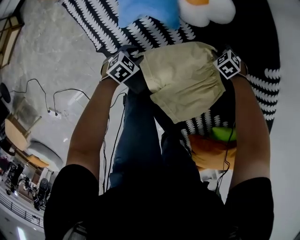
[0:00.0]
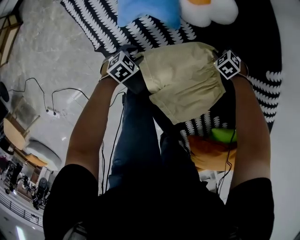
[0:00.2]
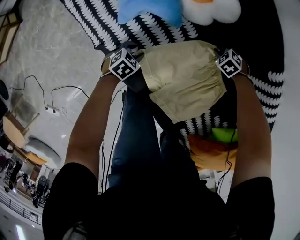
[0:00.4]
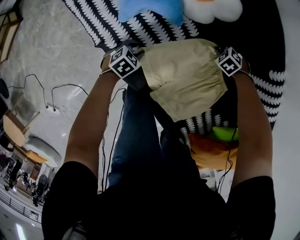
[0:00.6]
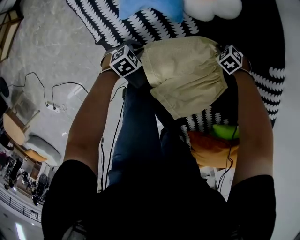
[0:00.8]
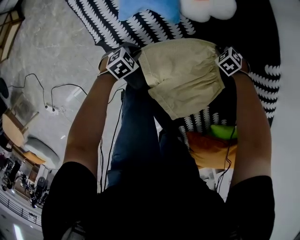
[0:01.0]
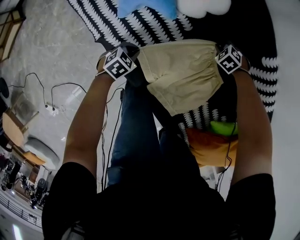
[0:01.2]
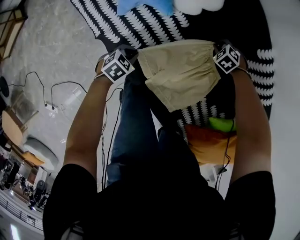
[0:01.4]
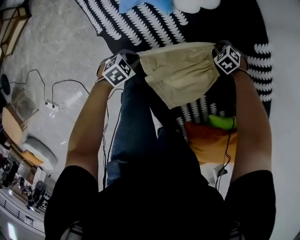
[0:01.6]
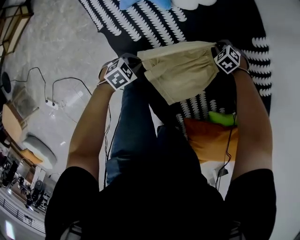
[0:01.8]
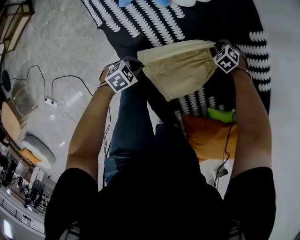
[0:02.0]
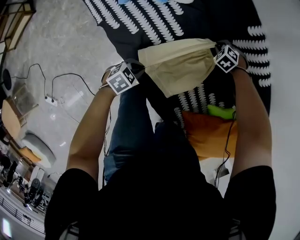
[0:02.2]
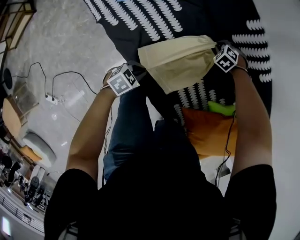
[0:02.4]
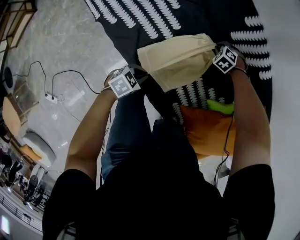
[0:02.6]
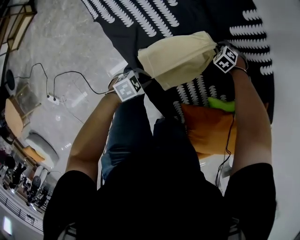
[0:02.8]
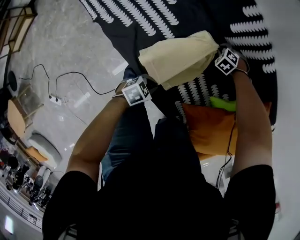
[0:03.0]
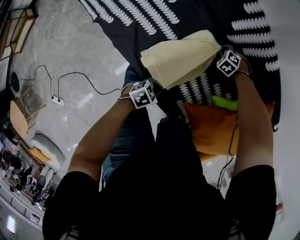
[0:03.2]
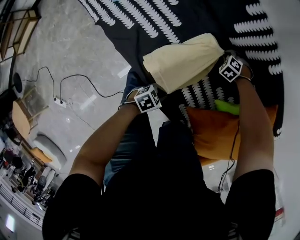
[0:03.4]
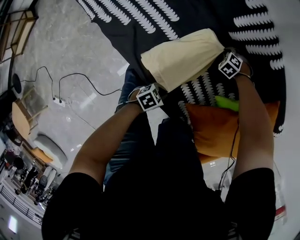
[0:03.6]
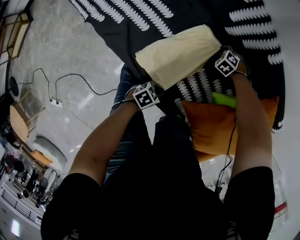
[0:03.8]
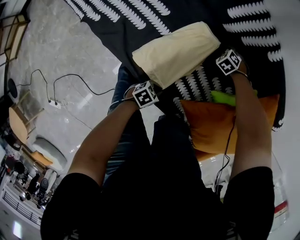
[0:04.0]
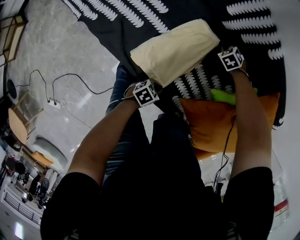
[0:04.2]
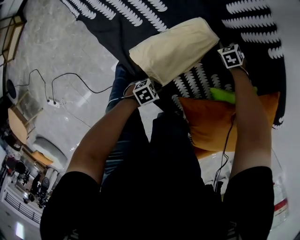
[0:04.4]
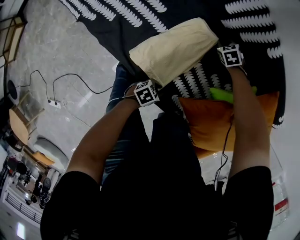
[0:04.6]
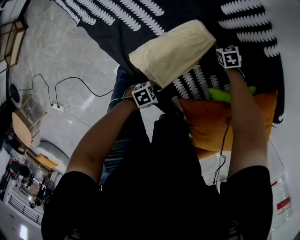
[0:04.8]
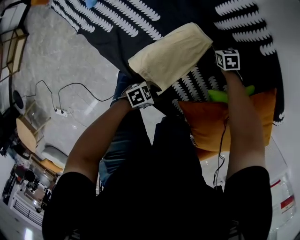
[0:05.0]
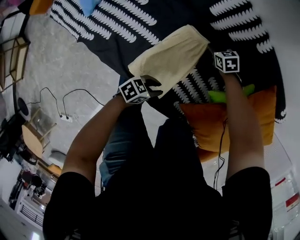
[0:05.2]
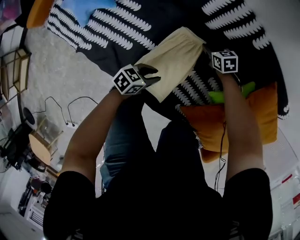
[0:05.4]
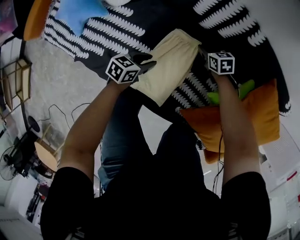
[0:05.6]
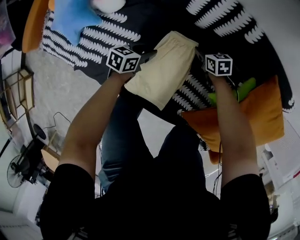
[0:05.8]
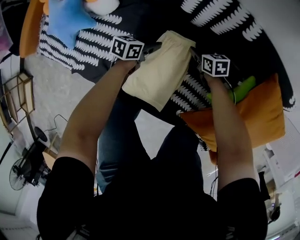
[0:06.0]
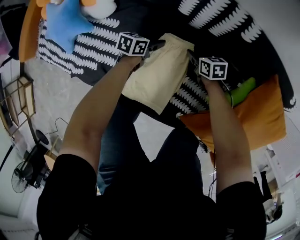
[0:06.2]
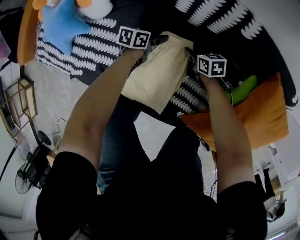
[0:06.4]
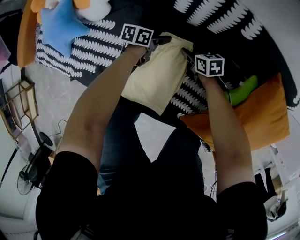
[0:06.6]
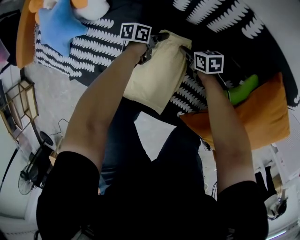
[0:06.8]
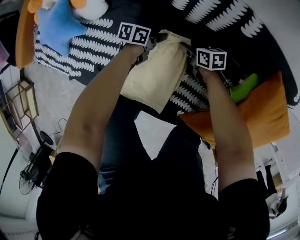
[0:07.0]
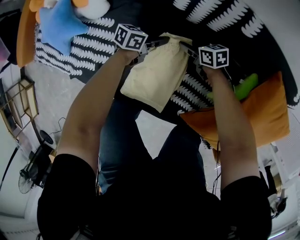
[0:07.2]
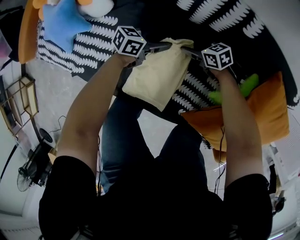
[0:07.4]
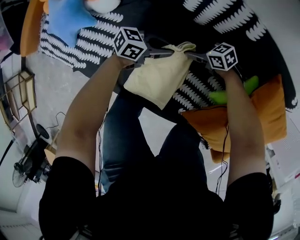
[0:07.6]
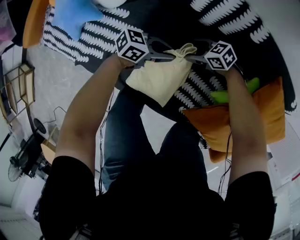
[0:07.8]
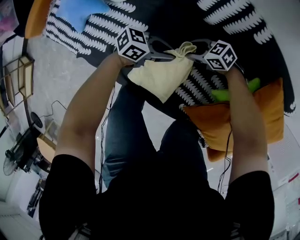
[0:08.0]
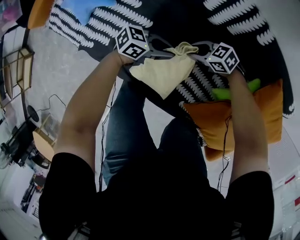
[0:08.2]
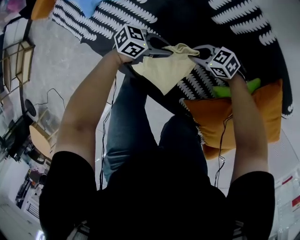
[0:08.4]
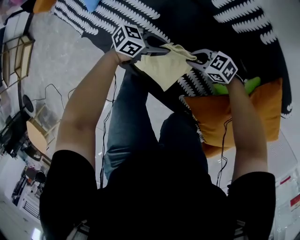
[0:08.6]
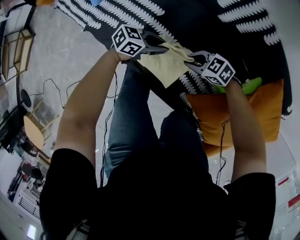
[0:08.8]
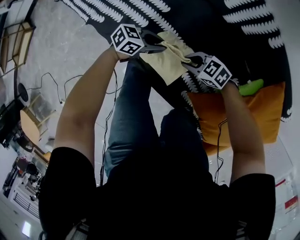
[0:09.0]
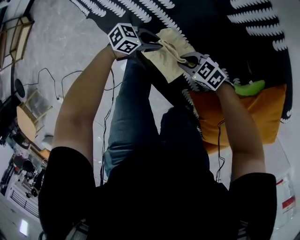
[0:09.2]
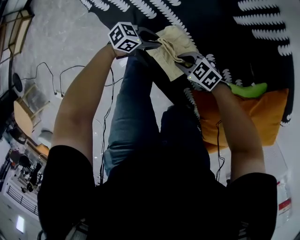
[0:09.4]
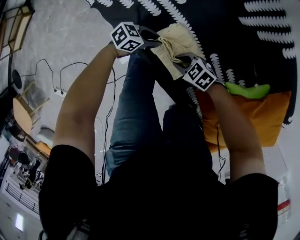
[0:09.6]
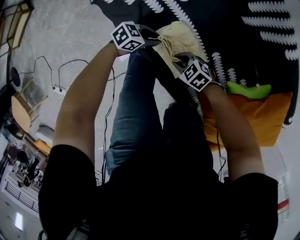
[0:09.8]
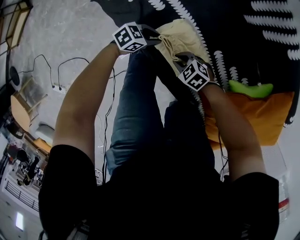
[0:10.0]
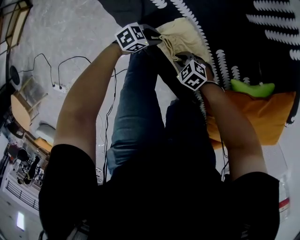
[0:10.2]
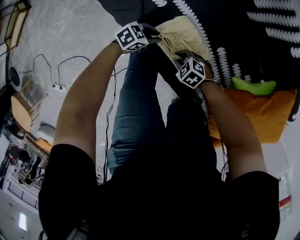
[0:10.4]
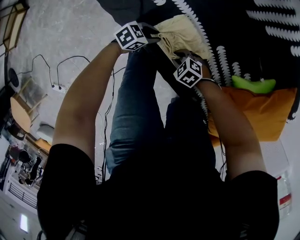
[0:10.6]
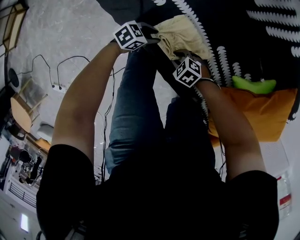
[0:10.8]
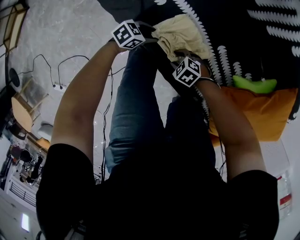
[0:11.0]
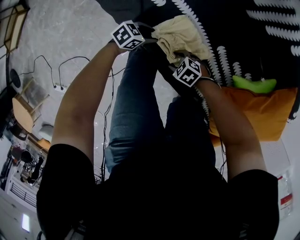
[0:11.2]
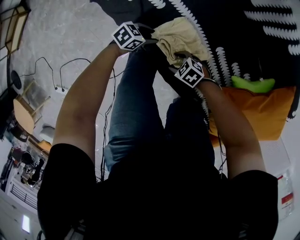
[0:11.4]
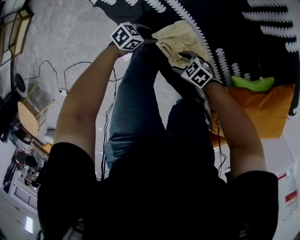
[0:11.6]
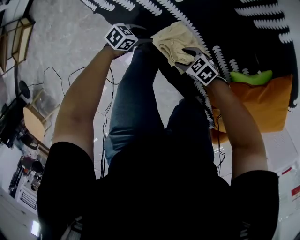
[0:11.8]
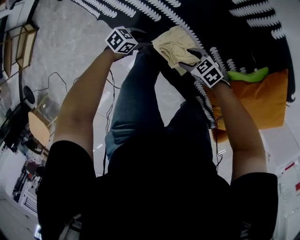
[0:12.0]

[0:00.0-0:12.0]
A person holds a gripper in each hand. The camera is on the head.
0:00.0 to 0:01.6: Both grippers travel together upward, roughly 5 cm. The left gripper closes up.
0:01.6 to 0:03.0: The right gripper shifts by approximately 15 cm; the left gripper shifts by approximately 30 cm.
0:03.0 to 0:04.4: The left gripper is displaced downward by about 10 cm; the right gripper shifts by approximately 5 cm, and turns by about 30 degrees.
0:04.4 to 0:06.0: The left gripper reaches some 10 cm upward, then returns, and opens. Meanwhile the right gripper rotates around the line of its fingers by about 60 degrees, clockwise from behind, and opens its fingers.
0:06.0 to 0:07.6: The left gripper moves upward, about 10 cm, swivels about 30 degrees, and closes its fingers; the right gripper shifts by approximately 5 cm, rotates some 30 degrees, and opens.
0:07.6 to 0:09.0: The right gripper ends up about 25 cm from where it was, turns by about 40 degrees, and closes. The left gripper shifts by about 20 cm.
0:09.0 to 0:10.4: The left gripper changes place by roughly 15 cm, while the right gripper changes place by about 15 cm, and rotates roughly 20 degrees.
0:10.4 to 0:12.0: Both grippers move upward, some 10 cm. The right gripper rotates approximately 20 degrees, and opens up; the left gripper opens.

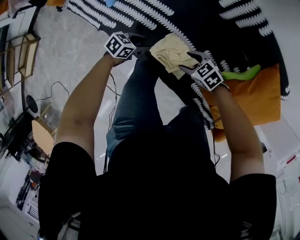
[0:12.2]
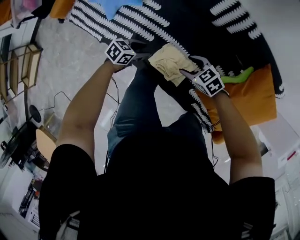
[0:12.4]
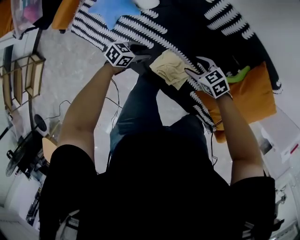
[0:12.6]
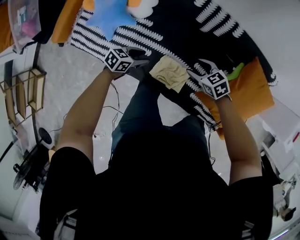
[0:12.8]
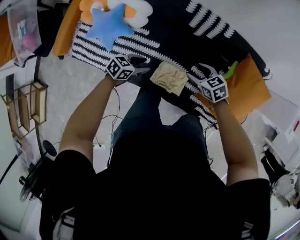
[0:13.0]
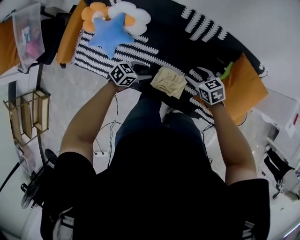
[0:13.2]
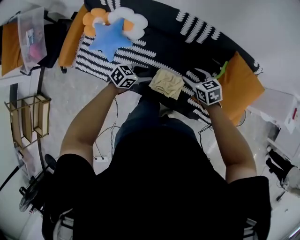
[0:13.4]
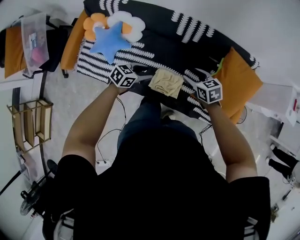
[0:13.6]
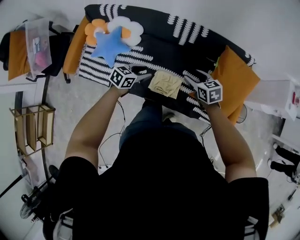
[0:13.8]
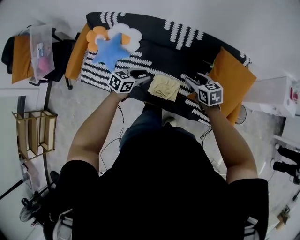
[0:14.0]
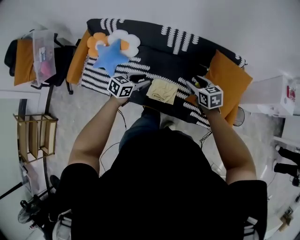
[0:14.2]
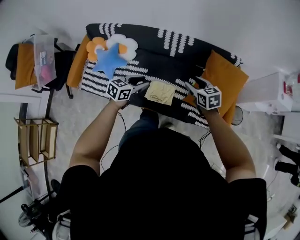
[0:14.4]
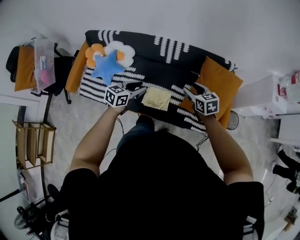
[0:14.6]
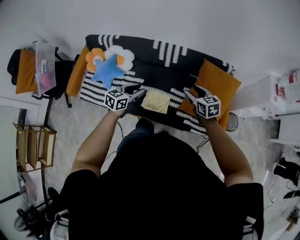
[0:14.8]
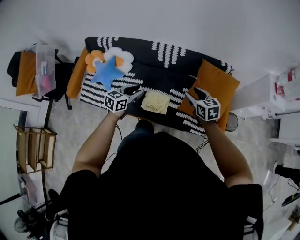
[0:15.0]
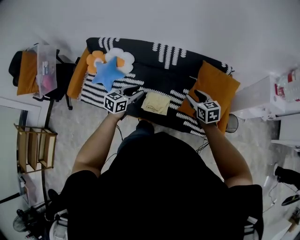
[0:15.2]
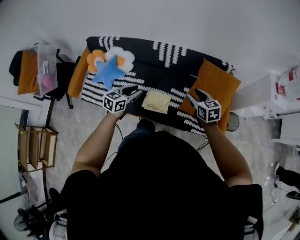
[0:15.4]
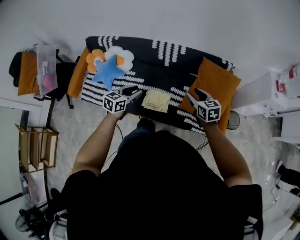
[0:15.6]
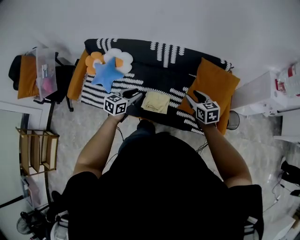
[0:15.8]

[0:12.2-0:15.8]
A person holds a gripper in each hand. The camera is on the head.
0:12.2 to 0:14.0: Both grippers travel together upward, roughly 35 cm. The left gripper swivels roughly 20 degrees. The right gripper turns by roughly 60 degrees.
0:14.0 to 0:15.8: The right gripper heads to the right, upward and backward, covering approximately 15 cm, while the left gripper heads upward, backward and to the right, covering about 10 cm.

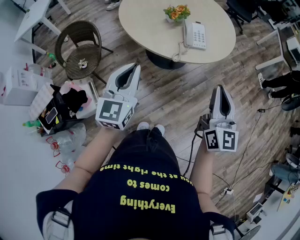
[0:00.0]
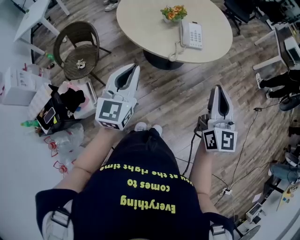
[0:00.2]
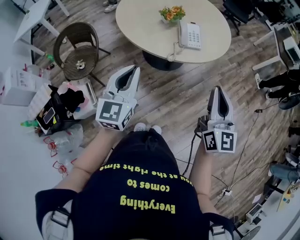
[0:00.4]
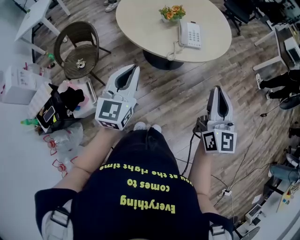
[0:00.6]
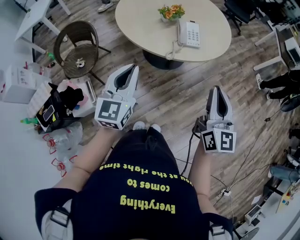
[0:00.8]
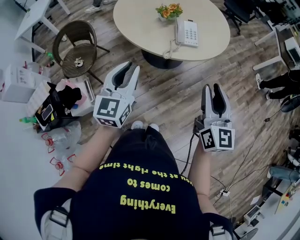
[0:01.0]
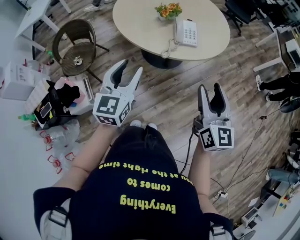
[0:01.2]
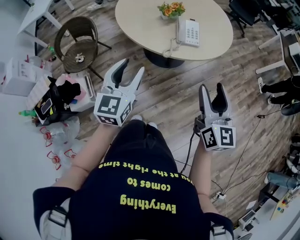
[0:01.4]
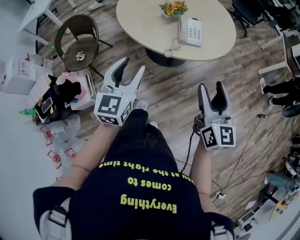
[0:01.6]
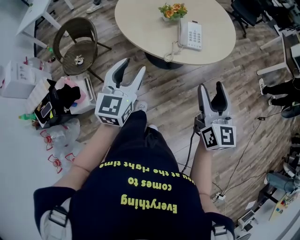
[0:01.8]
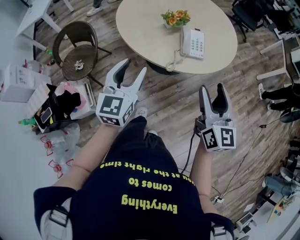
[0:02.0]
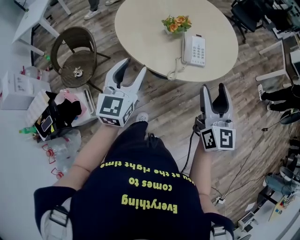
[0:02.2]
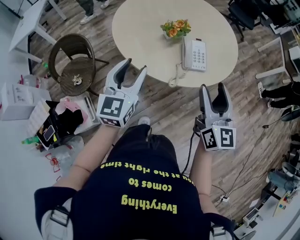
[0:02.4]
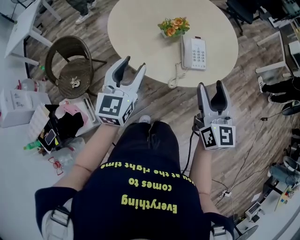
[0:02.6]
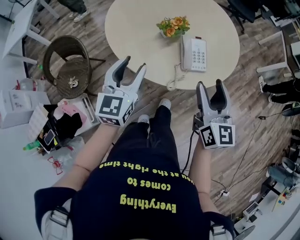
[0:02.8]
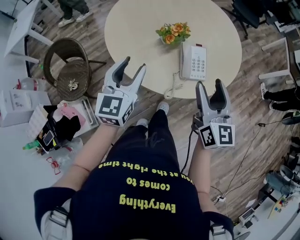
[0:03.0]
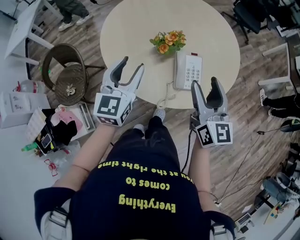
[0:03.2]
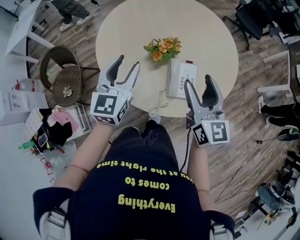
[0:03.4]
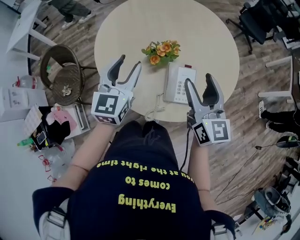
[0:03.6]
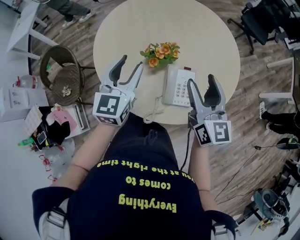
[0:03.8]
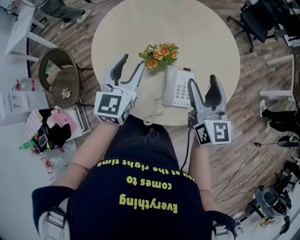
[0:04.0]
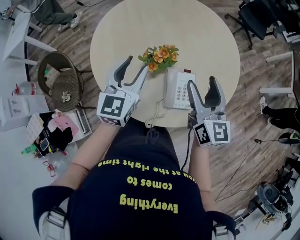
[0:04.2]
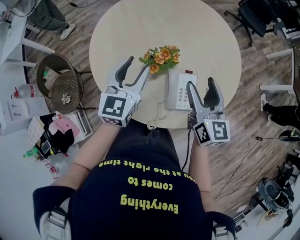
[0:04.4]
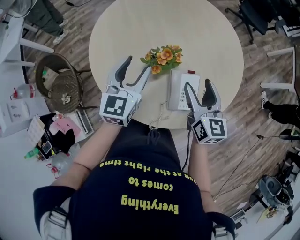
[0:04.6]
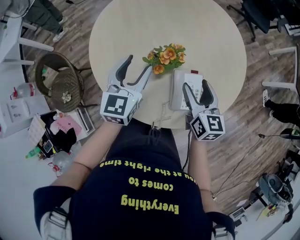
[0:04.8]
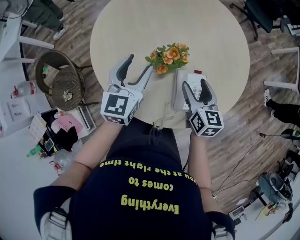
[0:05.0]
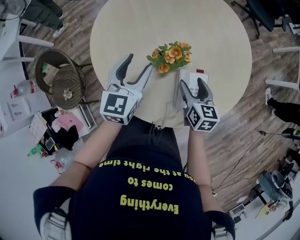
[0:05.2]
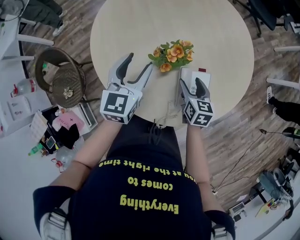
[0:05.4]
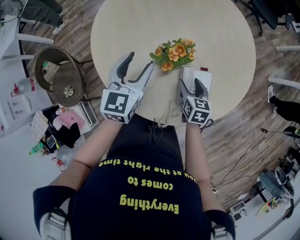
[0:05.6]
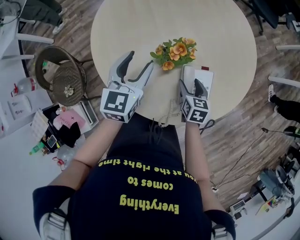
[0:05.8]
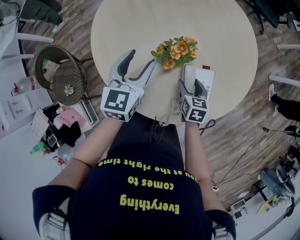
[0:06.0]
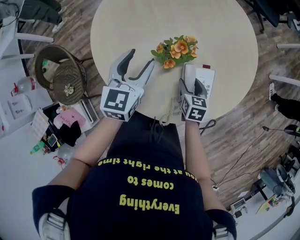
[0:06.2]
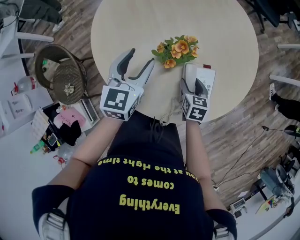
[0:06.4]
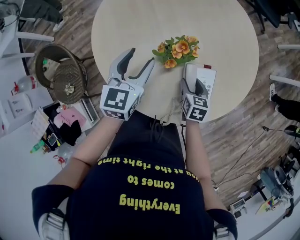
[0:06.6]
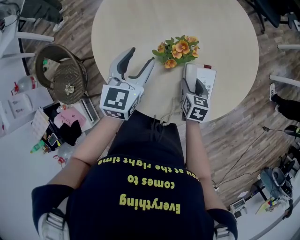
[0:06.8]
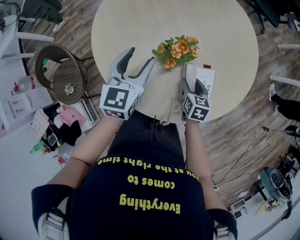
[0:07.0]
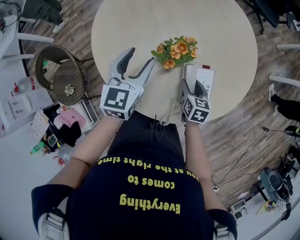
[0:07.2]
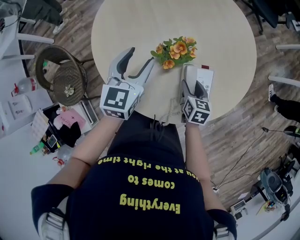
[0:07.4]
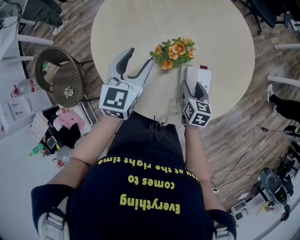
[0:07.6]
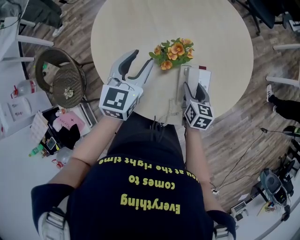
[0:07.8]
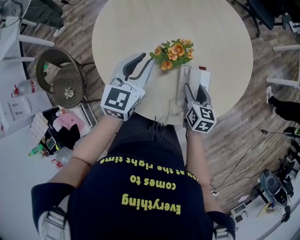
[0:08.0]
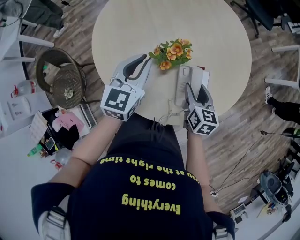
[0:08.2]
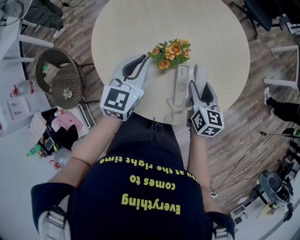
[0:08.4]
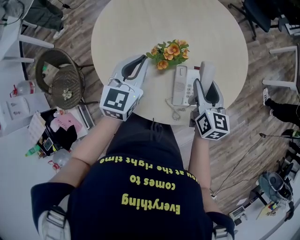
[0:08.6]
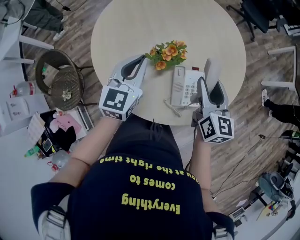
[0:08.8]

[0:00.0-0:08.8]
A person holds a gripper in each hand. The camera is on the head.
0:00.0 to 0:01.4: Both grippers move to the right, some 5 cm. The left gripper opens. The right gripper opens.
0:01.4 to 0:03.0: The two grippers go about 30 cm forward.
0:03.0 to 0:04.4: The right gripper moves forward, approximately 20 cm. The left gripper travels forward and to the right by some 20 cm.
0:04.4 to 0:05.8: The right gripper moves downward, about 25 cm, and angles its fingers downward, by approximately 40 degrees; the left gripper moves downward, approximately 5 cm.
0:05.8 to 0:07.4: Both grippers stay put.
0:07.4 to 0:08.8: The left gripper ends up about 5 cm from where it was, and closes its fingers; the right gripper is displaced upward by roughly 20 cm, and swivels roughly 30 degrees.
